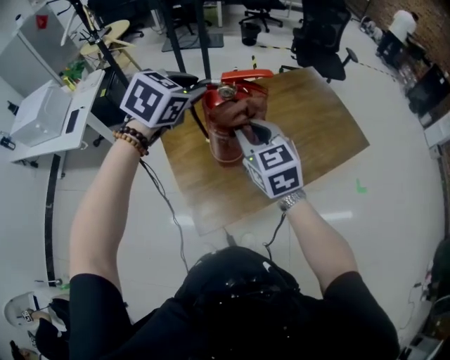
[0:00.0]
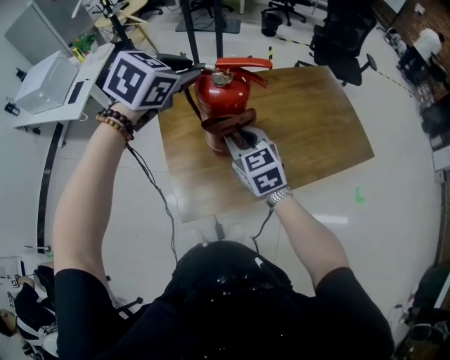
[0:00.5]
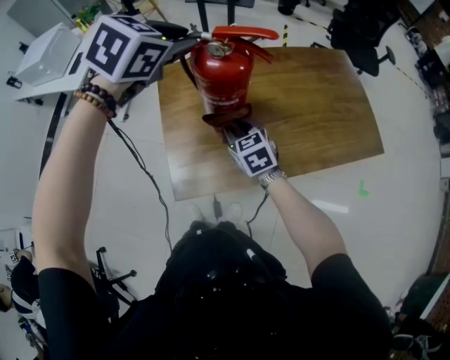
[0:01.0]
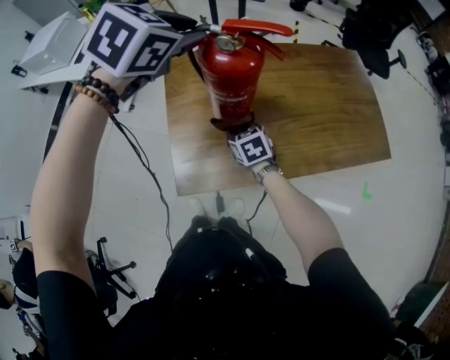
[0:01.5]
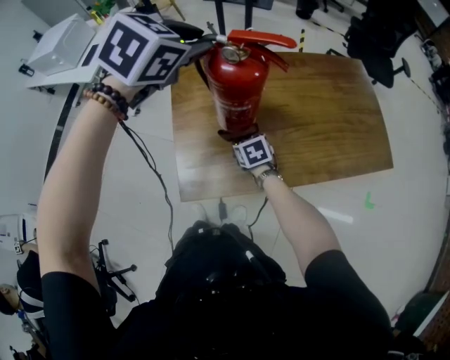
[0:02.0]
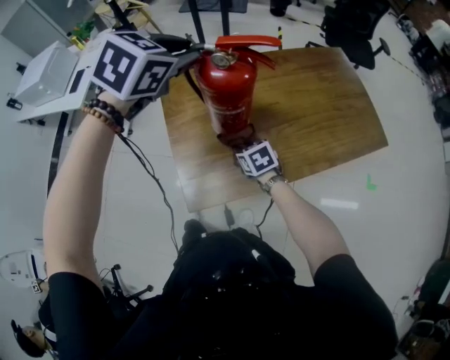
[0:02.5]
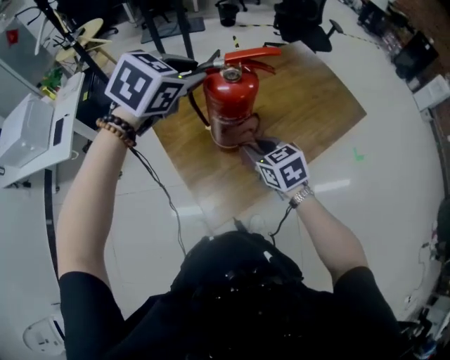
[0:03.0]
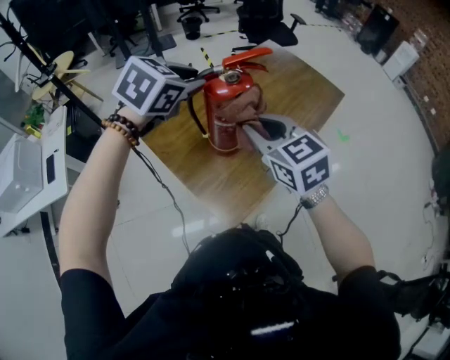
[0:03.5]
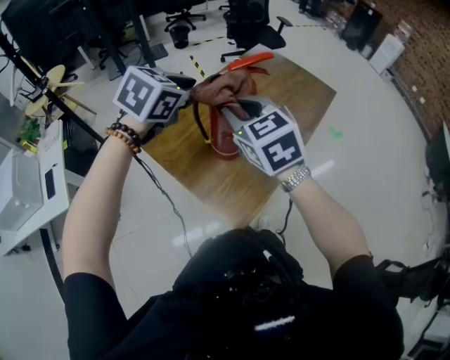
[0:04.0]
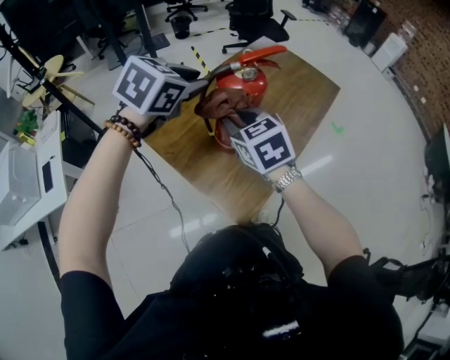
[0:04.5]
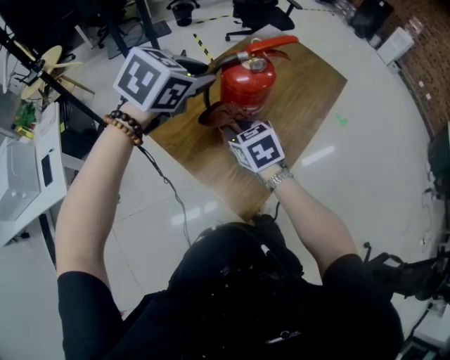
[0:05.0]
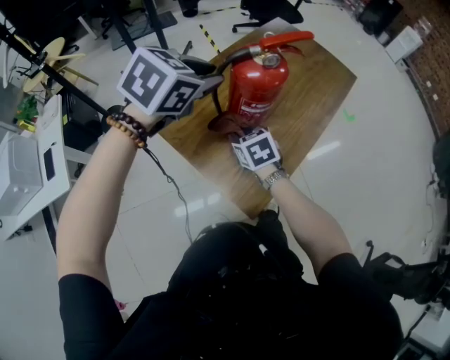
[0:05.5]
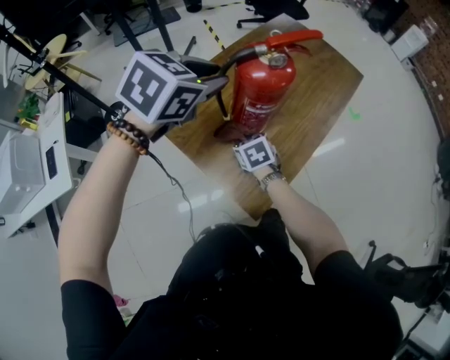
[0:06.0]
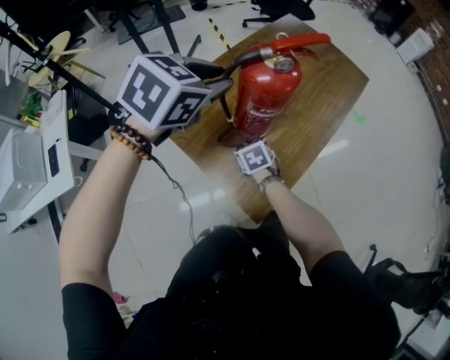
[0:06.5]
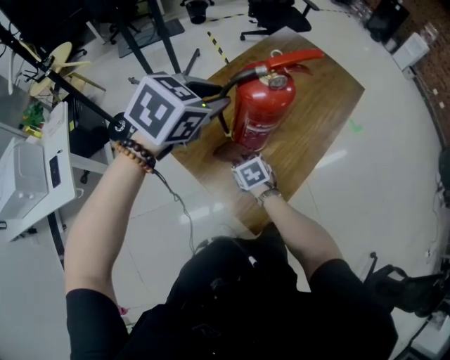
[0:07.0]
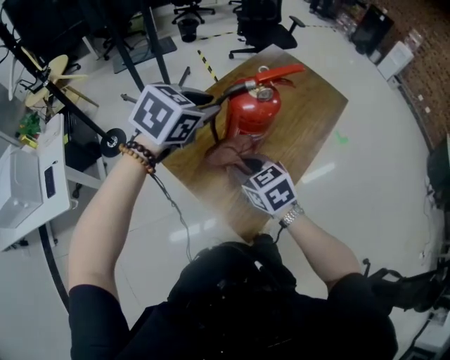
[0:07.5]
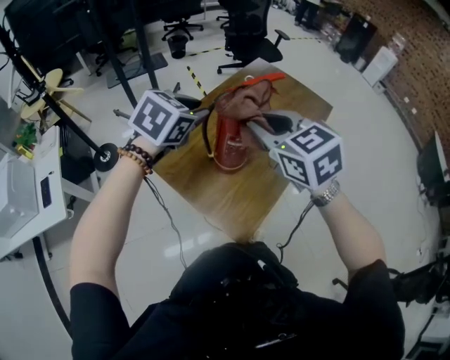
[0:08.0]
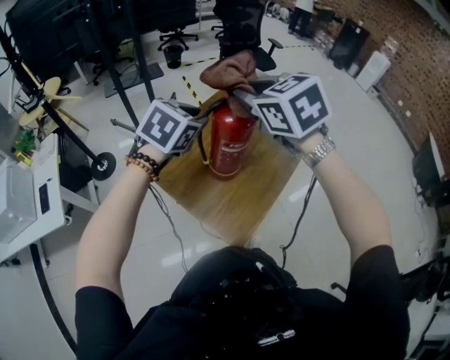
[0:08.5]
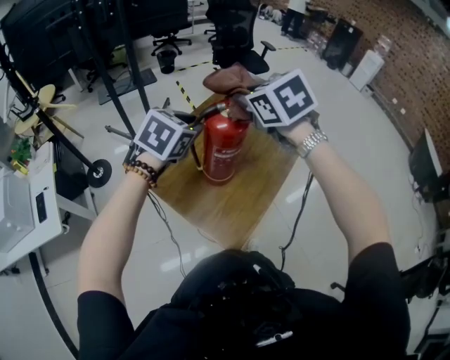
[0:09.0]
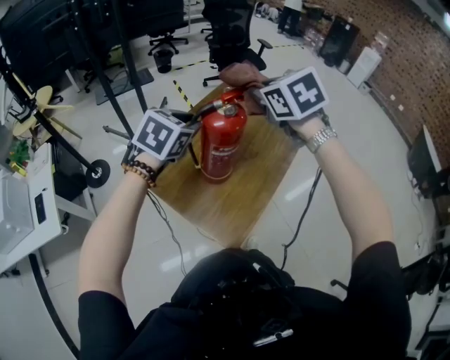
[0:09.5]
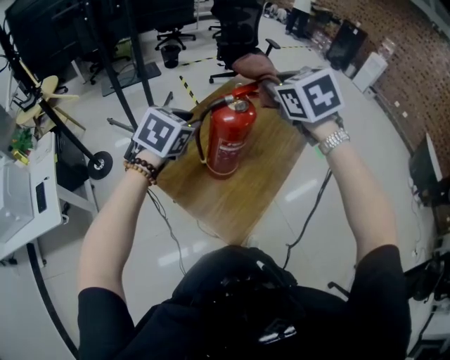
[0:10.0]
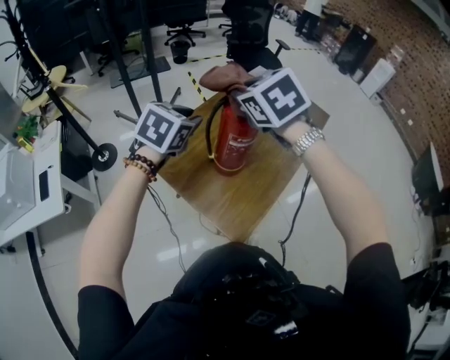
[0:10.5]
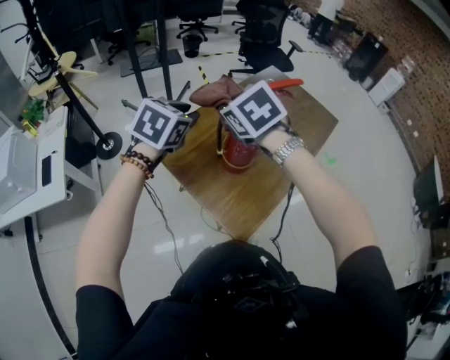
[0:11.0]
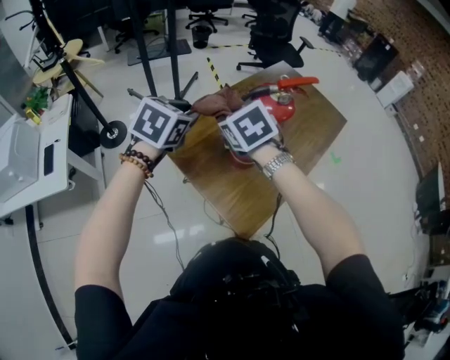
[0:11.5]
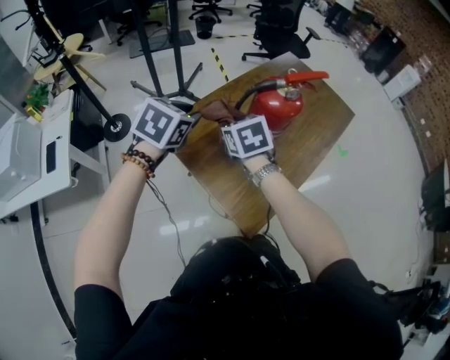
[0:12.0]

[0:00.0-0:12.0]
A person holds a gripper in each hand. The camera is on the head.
0:00.0 to 0:02.0: The right gripper is displaced downward by some 30 cm, and points its fingers approximately 30 degrees further downward.
0:02.0 to 0:04.0: The right gripper moves upward, approximately 35 cm, and turns by some 40 degrees; the left gripper changes its angle by some 40 degrees.
0:04.0 to 0:06.0: The right gripper is displaced downward by about 35 cm, and turns by approximately 30 degrees.
0:06.0 to 0:08.0: The right gripper moves upward, roughly 35 cm, and turns by roughly 30 degrees.
0:08.0 to 0:10.0: The right gripper moves forward and upward, some 10 cm.
0:10.0 to 0:12.0: The left gripper heads to the left and downward, covering some 10 cm. The right gripper moves downward and to the left, about 30 cm.

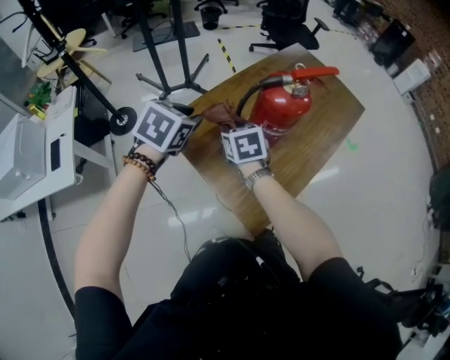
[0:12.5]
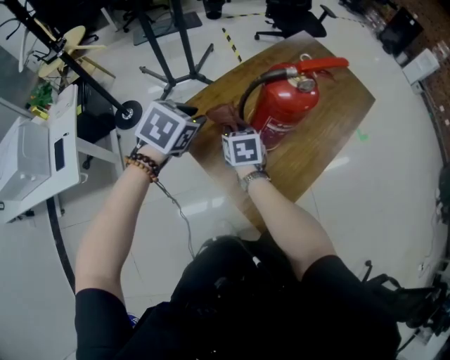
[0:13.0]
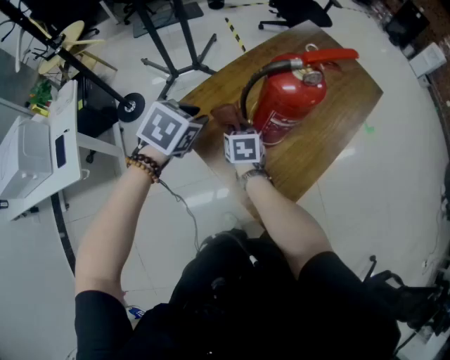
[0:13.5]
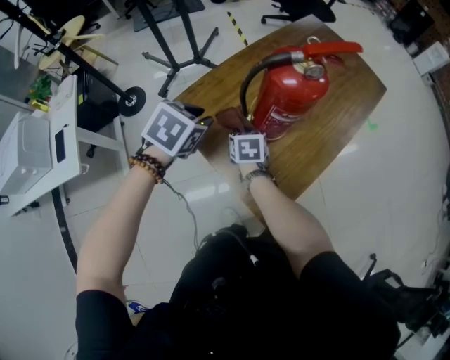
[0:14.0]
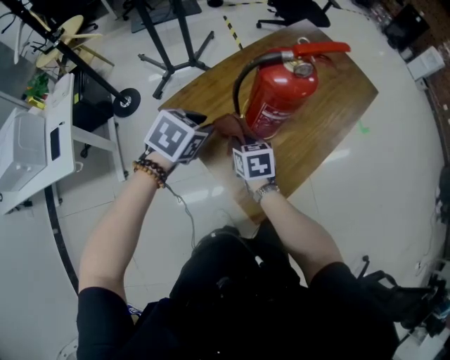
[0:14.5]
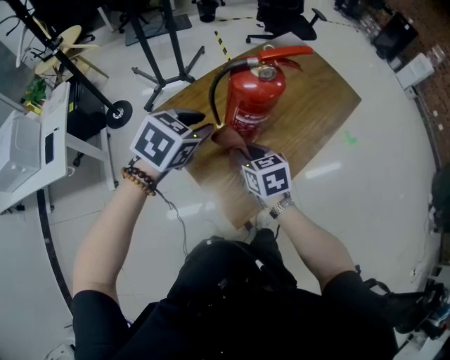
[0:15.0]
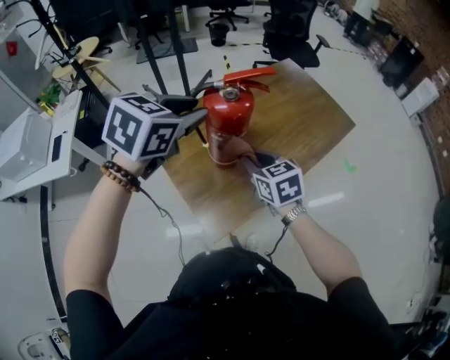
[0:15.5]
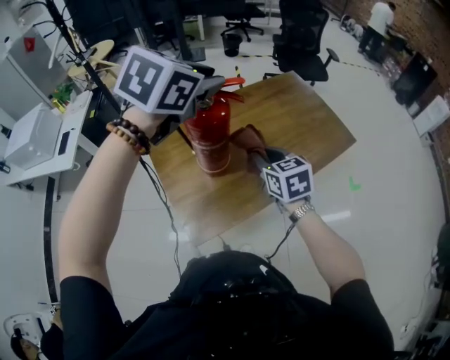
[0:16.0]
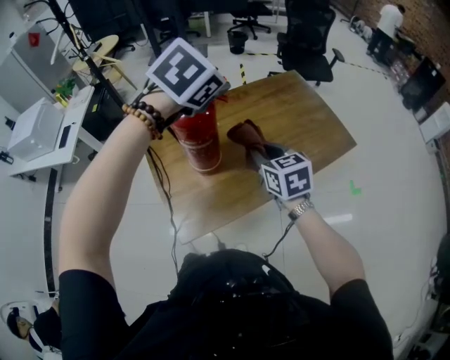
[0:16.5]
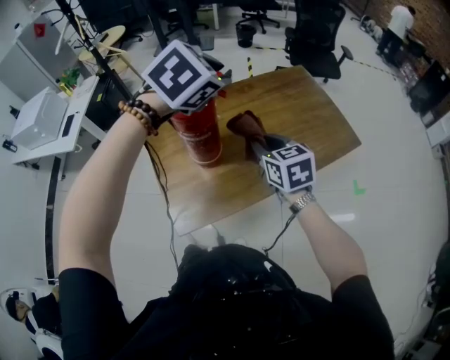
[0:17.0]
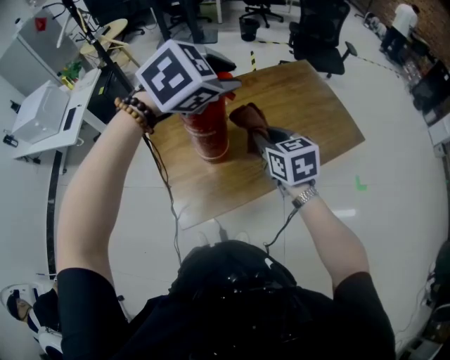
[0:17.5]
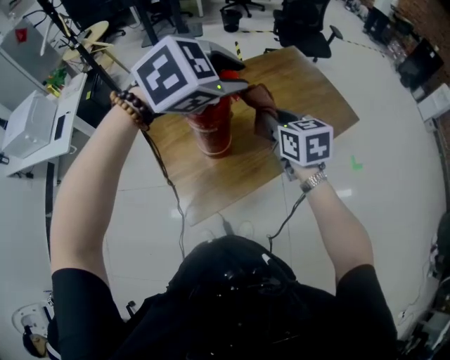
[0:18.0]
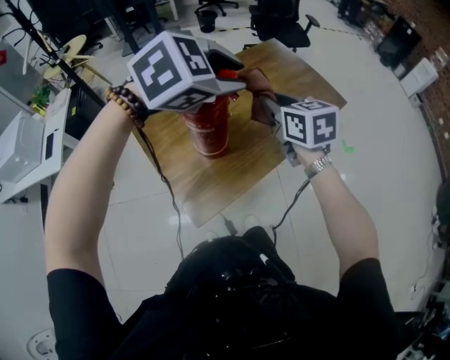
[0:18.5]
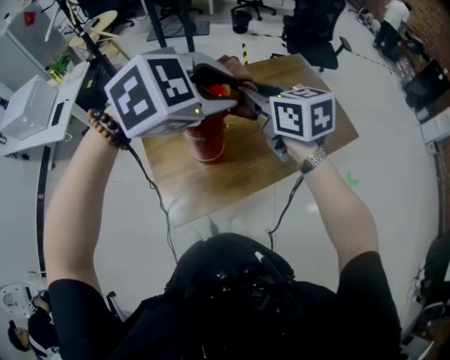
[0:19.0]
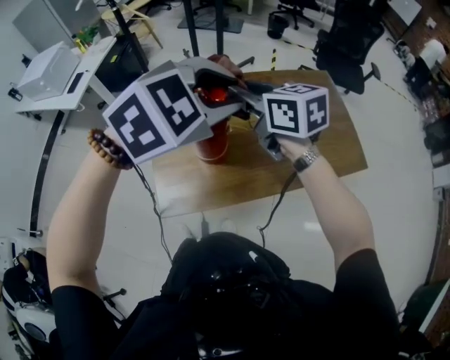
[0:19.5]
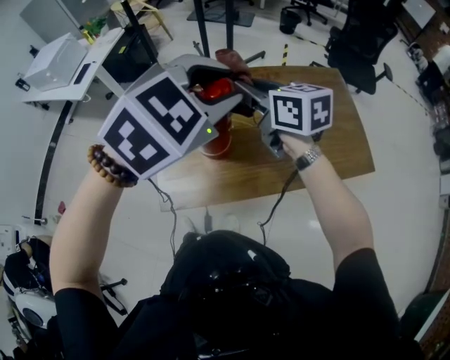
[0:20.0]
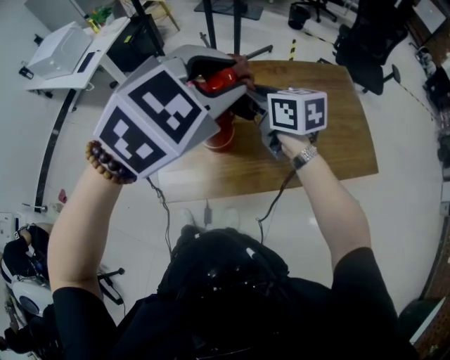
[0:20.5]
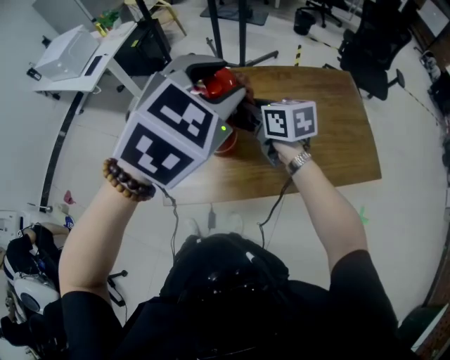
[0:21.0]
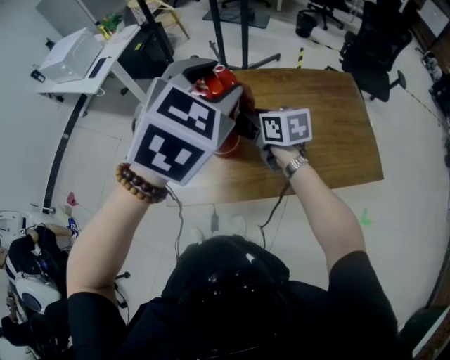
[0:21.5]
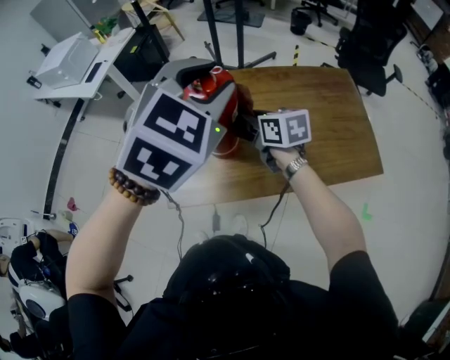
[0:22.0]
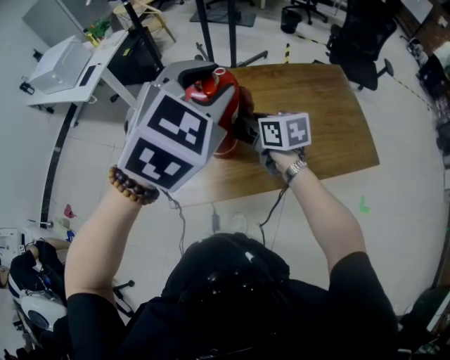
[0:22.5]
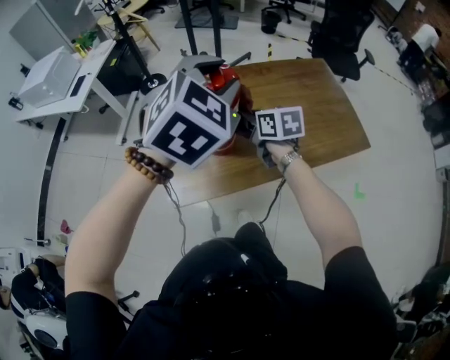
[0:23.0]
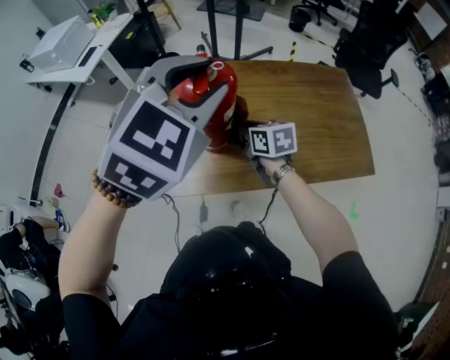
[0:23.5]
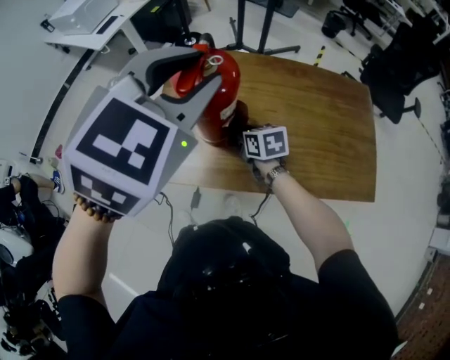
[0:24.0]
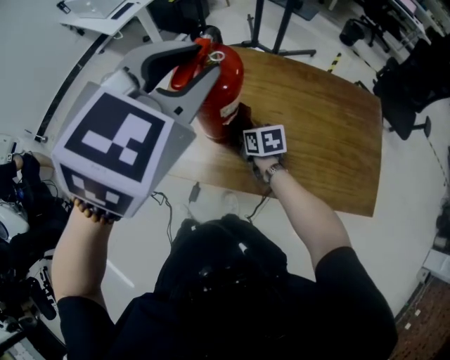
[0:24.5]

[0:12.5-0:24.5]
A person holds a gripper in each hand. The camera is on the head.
0:12.5 to 0:14.5: The left gripper moves downward and to the right, roughly 10 cm. Meanwhile the right gripper travels downward and backward by about 10 cm.
0:14.5 to 0:16.5: The left gripper shifts roughly 35 cm upward and to the right, and turns by roughly 20 degrees. The right gripper goes about 30 cm to the right and upward, and rotates roughly 30 degrees.
0:16.5 to 0:18.5: The left gripper goes some 10 cm backward, and changes its angle by about 40 degrees, while the right gripper travels upward by approximately 5 cm.
0:18.5 to 0:20.5: The left gripper rotates approximately 40 degrees. The right gripper shifts by some 10 cm, and swivels approximately 40 degrees.
0:20.5 to 0:22.5: The right gripper moves downward, some 5 cm.
0:22.5 to 0:24.5: The left gripper swivels about 20 degrees, while the right gripper travels downward by some 20 cm, and swivels about 20 degrees.

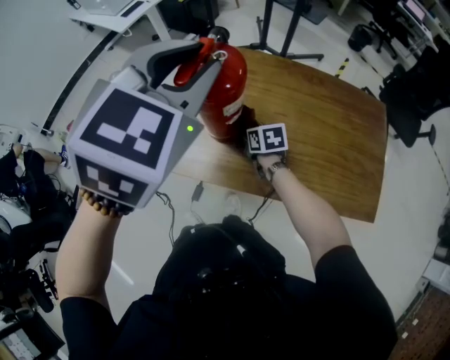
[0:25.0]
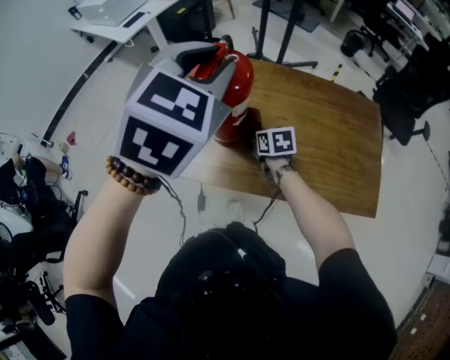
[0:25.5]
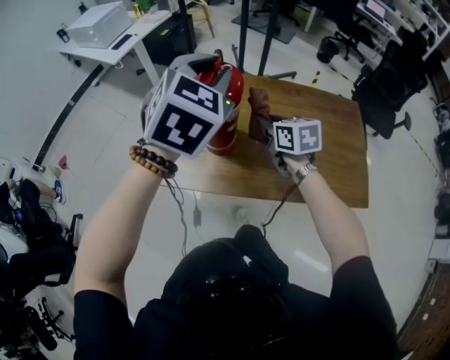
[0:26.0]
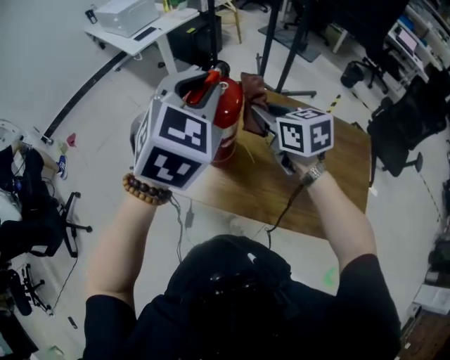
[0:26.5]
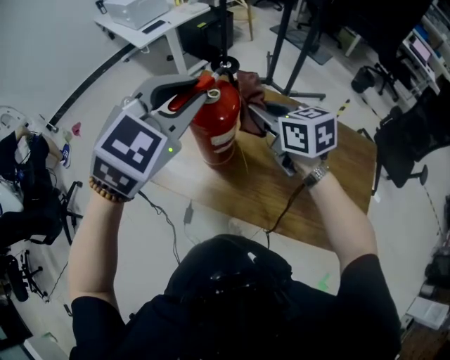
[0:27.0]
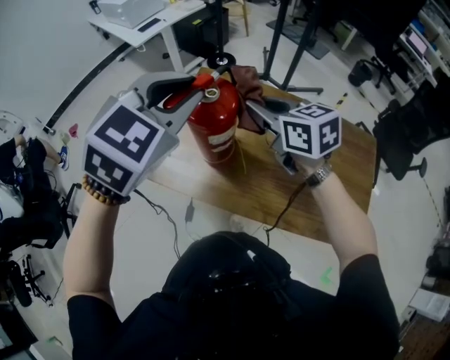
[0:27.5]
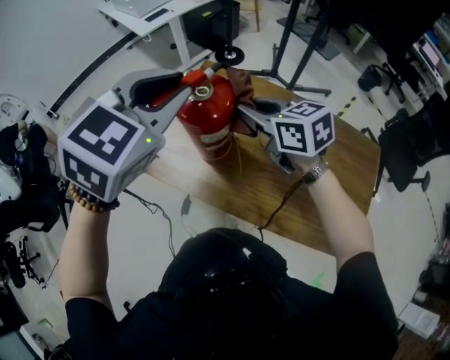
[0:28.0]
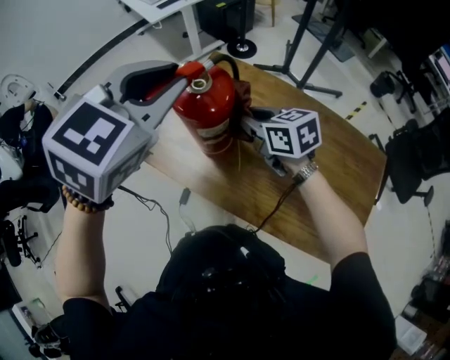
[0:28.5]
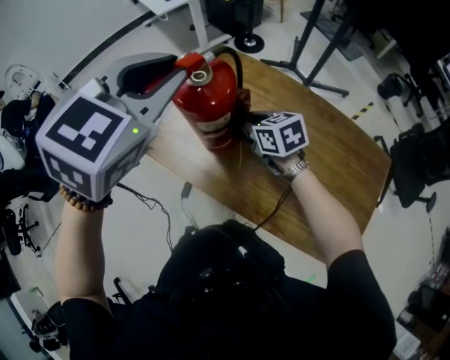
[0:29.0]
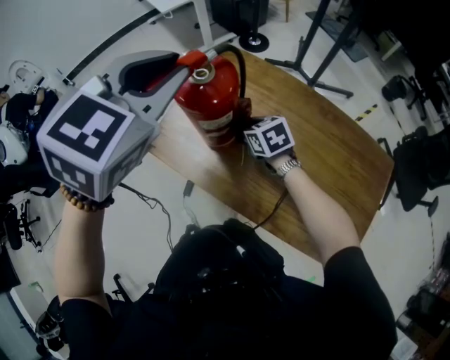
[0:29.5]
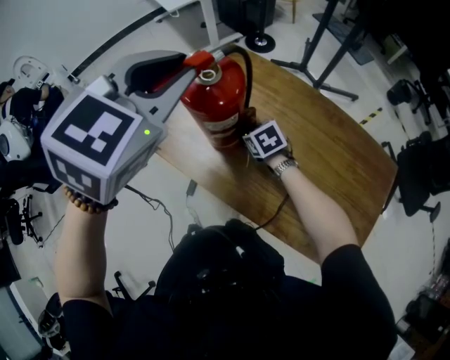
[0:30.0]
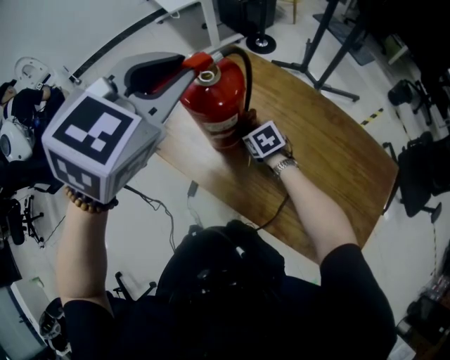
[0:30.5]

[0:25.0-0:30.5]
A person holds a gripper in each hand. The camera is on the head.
0:25.0 to 0:27.0: The right gripper travels upward by some 30 cm, and changes its angle by some 30 degrees.
0:27.0 to 0:28.5: The right gripper heads downward, covering some 10 cm.
0:28.5 to 0:30.5: The right gripper goes roughly 20 cm downward, and changes its angle by some 30 degrees.
